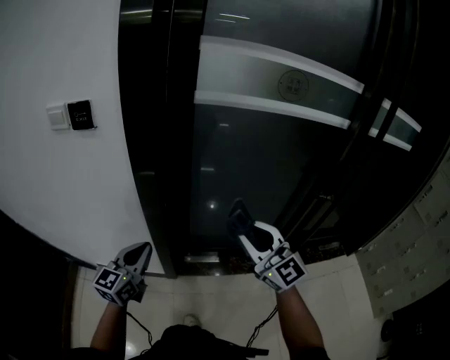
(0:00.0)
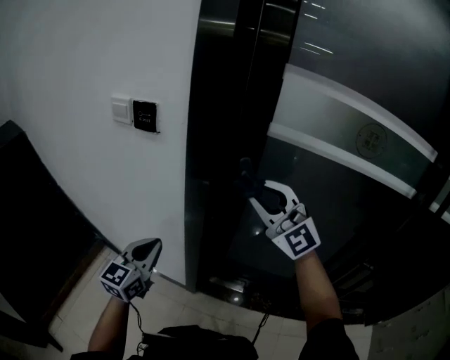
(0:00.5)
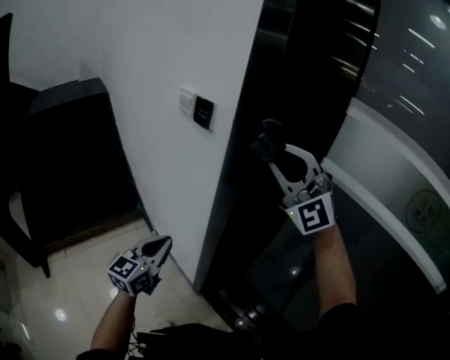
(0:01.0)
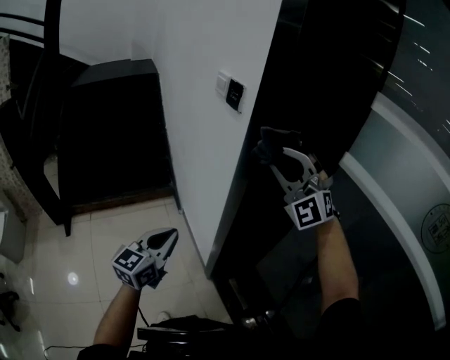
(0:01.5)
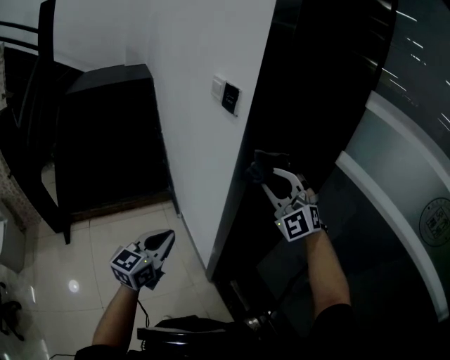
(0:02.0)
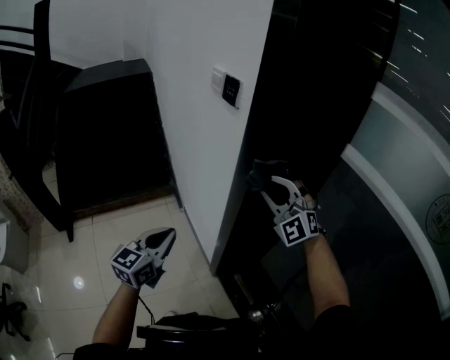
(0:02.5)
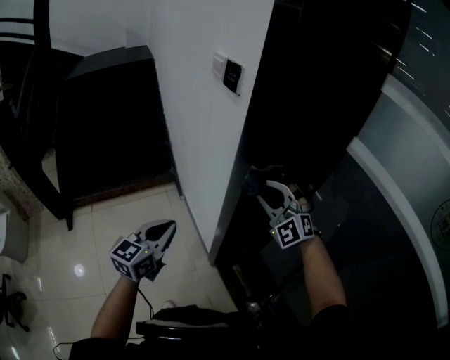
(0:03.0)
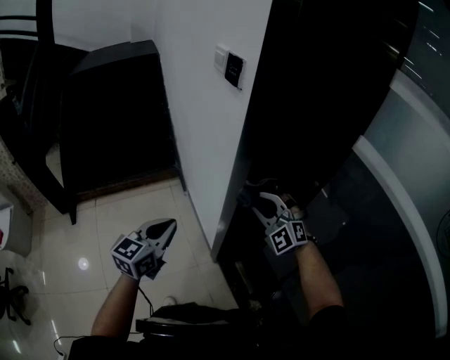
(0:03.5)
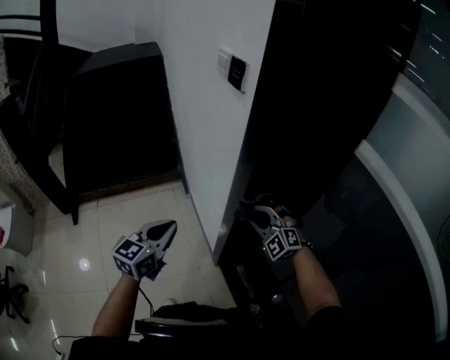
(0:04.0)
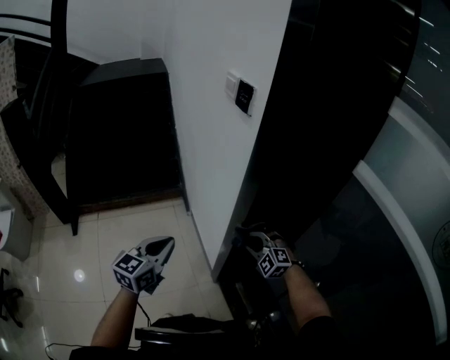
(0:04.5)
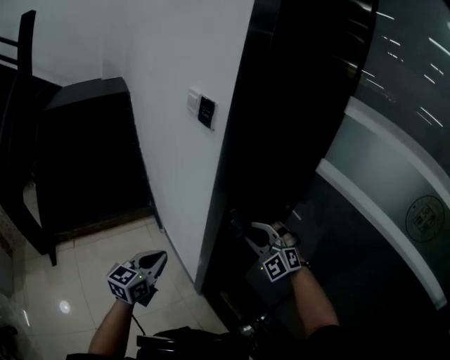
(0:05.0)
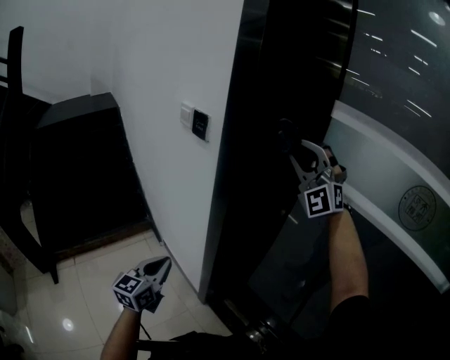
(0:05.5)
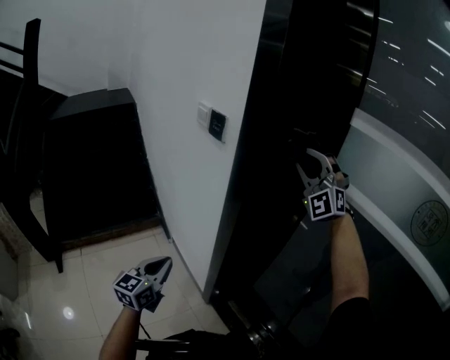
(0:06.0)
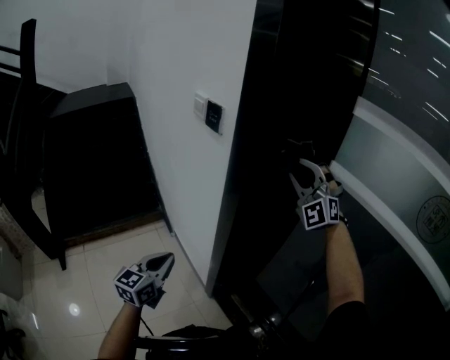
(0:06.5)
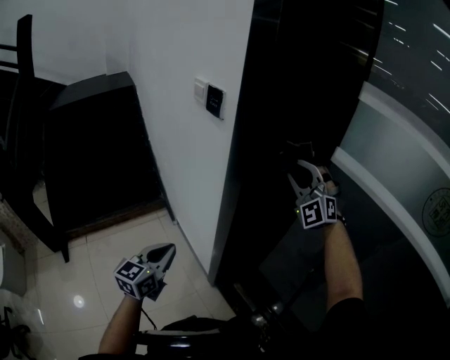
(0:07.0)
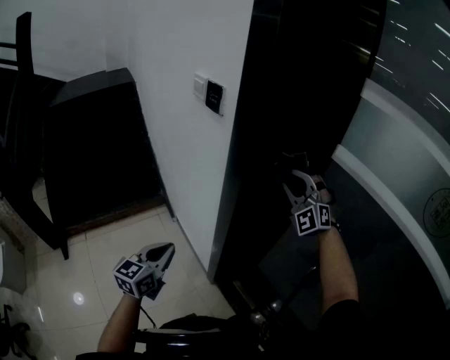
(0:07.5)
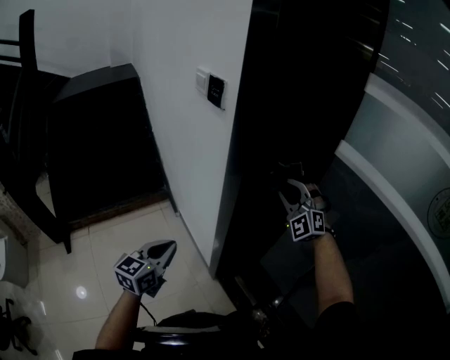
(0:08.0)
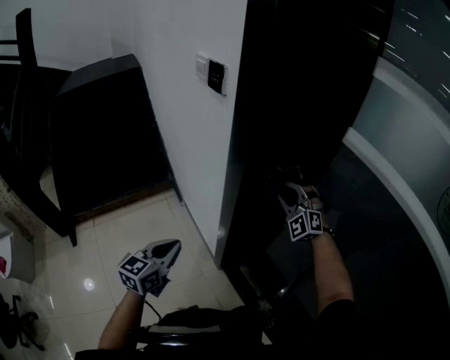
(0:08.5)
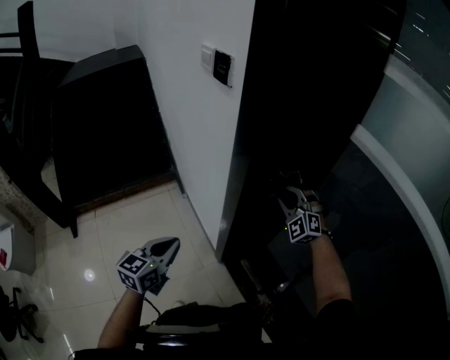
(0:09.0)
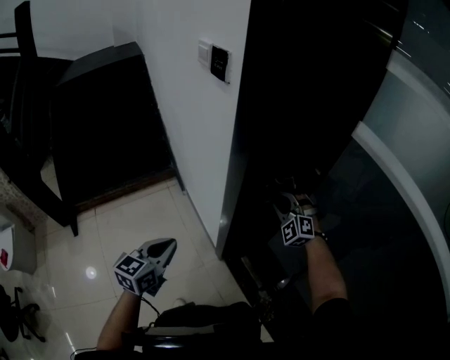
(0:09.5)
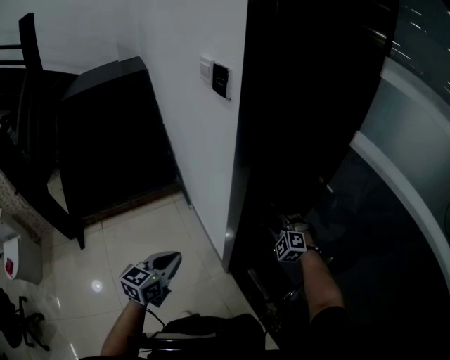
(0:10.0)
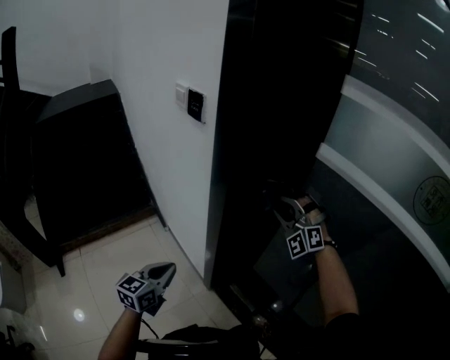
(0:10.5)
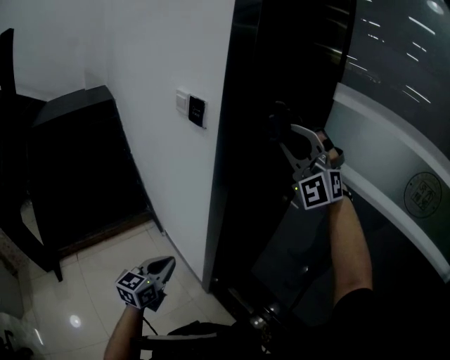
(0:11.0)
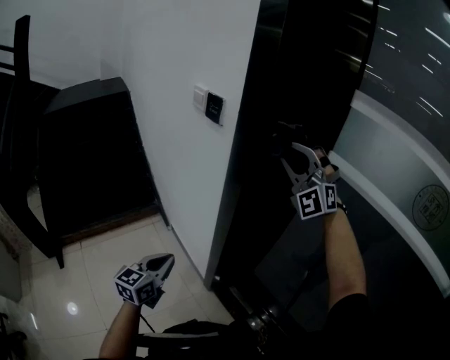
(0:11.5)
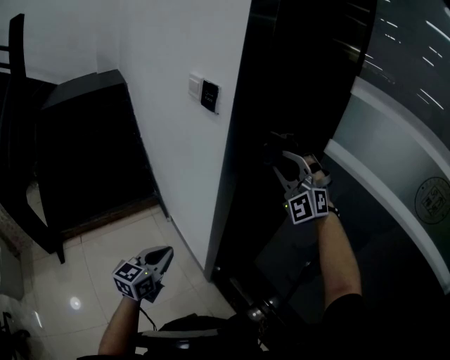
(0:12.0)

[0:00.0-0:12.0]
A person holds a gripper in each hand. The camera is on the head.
0:00.0 to 0:02.0: The right gripper reaches roughly 20 cm upward, then returns, and swivels about 70 degrees; the left gripper ends up some 5 cm from where it was, and changes its angle by some 60 degrees.
0:02.0 to 0:04.0: The right gripper heads downward, covering approximately 25 cm, and rotates approximately 30 degrees.
0:04.0 to 0:06.0: The right gripper shifts roughly 35 cm upward, and tilts its fingers approximately 30 degrees upward.
0:06.0 to 0:08.0: The right gripper heads downward, covering approximately 20 cm.
0:08.0 to 0:10.0: The right gripper moves downward, about 25 cm, and rotates about 30 degrees; the left gripper shifts by roughly 5 cm.
0:10.0 to 0:12.0: The right gripper moves upward, roughly 35 cm, and tips its fingers upward by about 40 degrees.

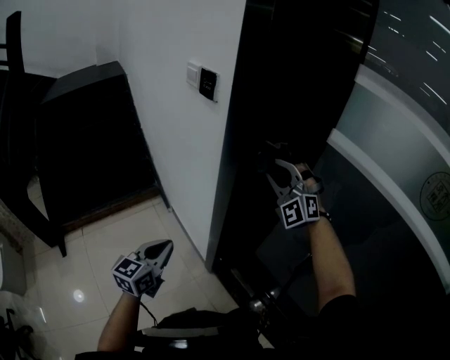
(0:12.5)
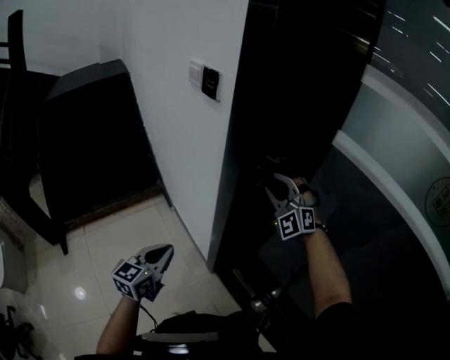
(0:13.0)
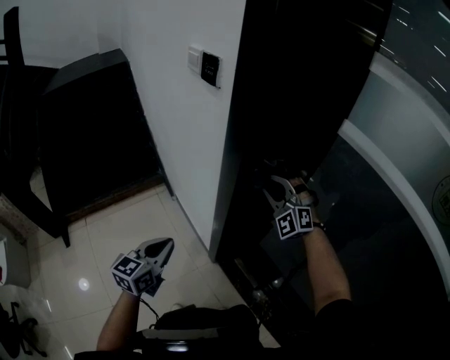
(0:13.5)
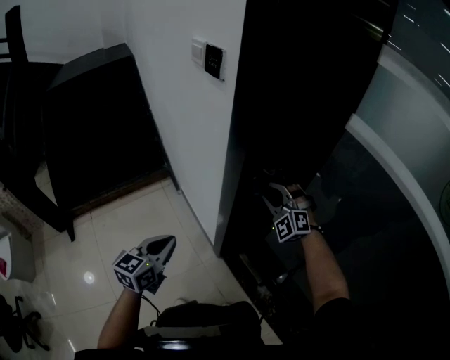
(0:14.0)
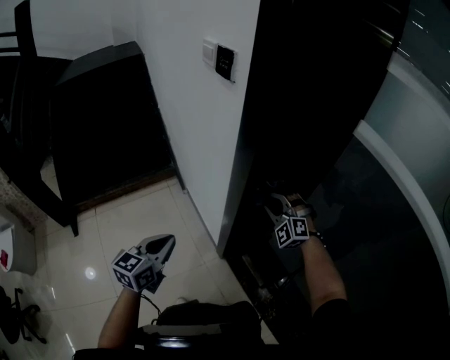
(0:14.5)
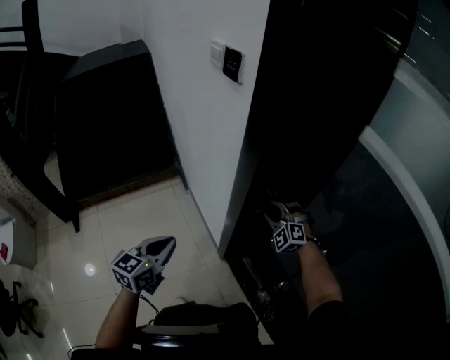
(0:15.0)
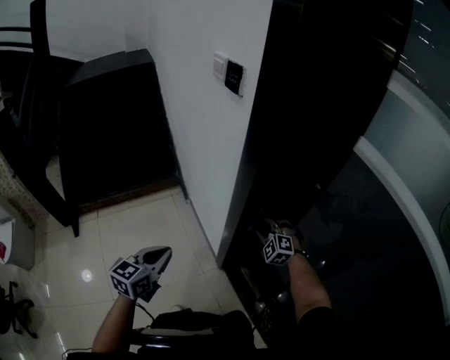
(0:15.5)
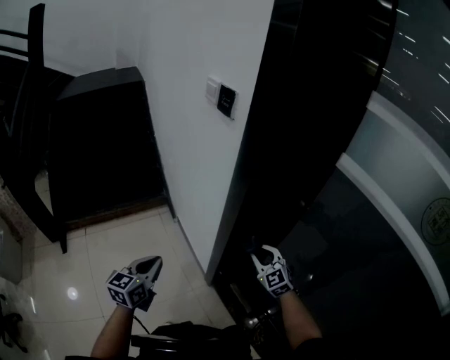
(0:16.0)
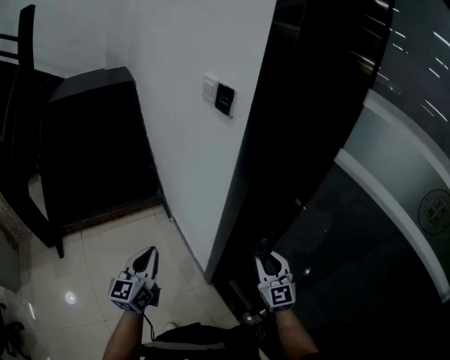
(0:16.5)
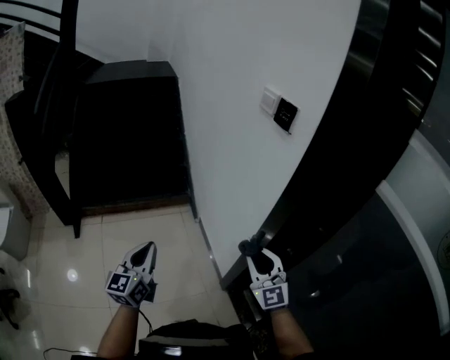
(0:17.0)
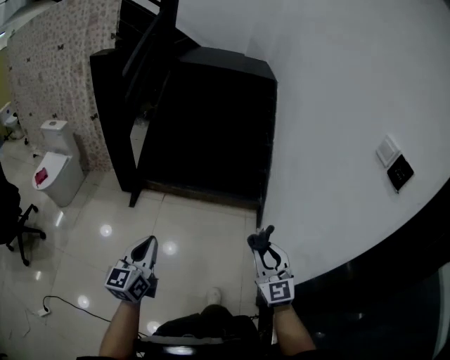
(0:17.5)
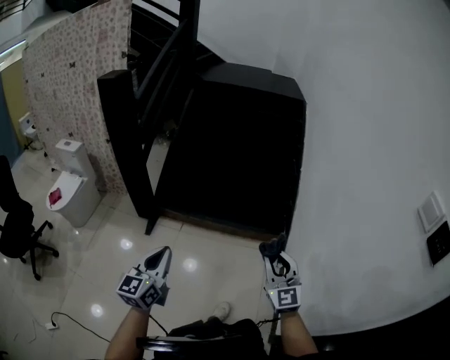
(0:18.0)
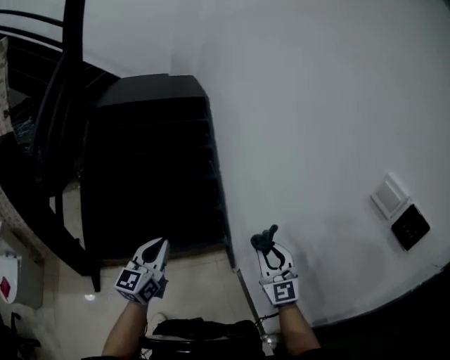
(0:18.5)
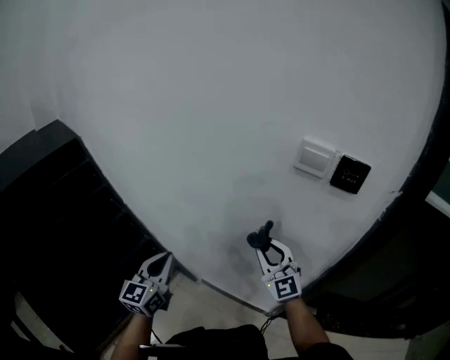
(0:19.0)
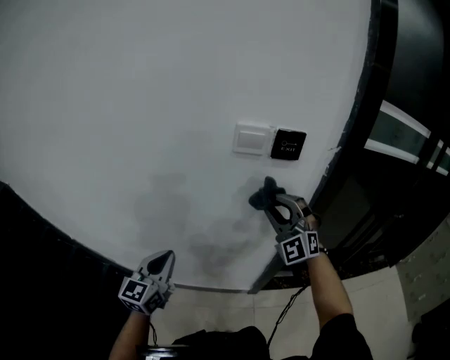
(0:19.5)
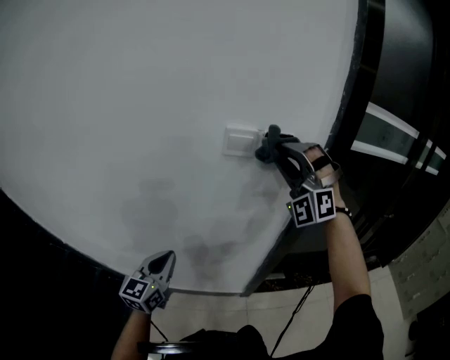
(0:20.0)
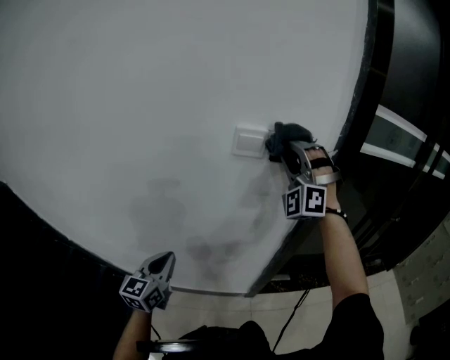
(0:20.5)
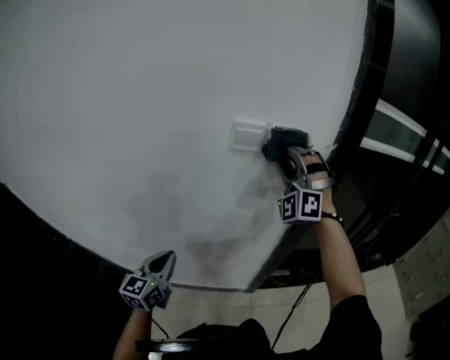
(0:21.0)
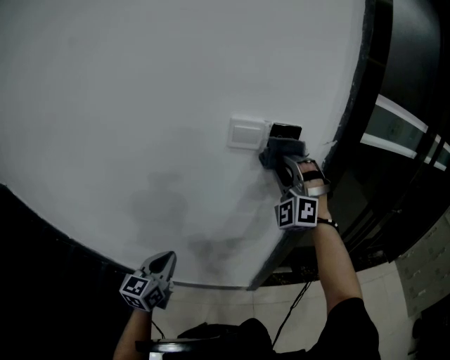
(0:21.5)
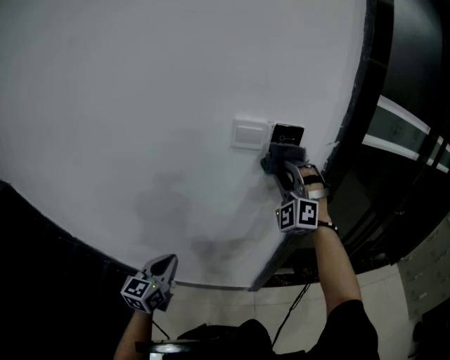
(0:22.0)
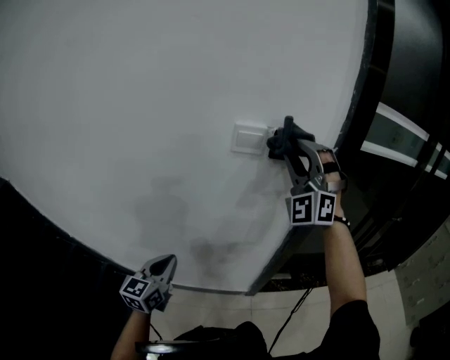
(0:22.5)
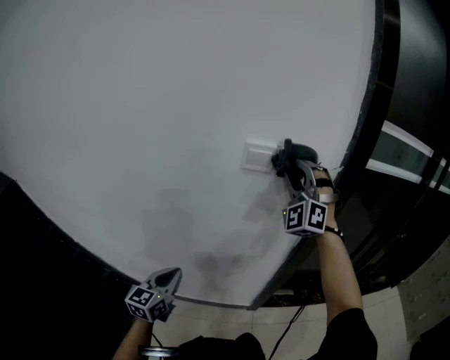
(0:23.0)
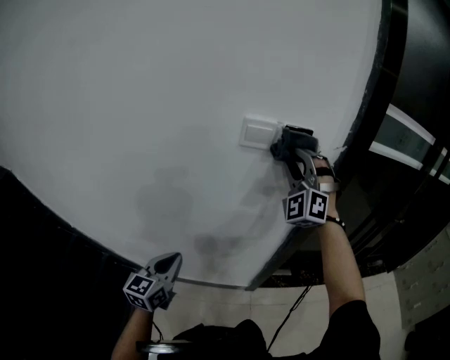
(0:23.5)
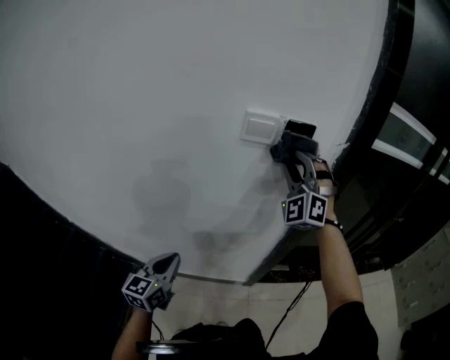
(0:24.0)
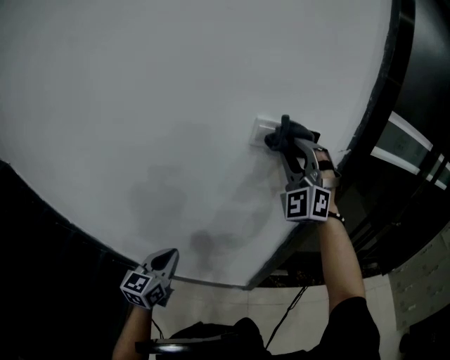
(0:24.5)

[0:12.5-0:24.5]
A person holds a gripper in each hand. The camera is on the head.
0:12.5 to 0:14.5: The right gripper travels downward by about 20 cm, and turns by roughly 20 degrees.
0:14.5 to 0:16.5: The right gripper travels backward by approximately 15 cm, and rotates around the line of its fingers by some 50 degrees, clockwise from behind. The left gripper goes about 5 cm to the left, and changes its angle by roughly 20 degrees.
0:16.5 to 0:18.5: The pair of grippers is taken about 60 cm.
0:18.5 to 0:20.5: The left gripper ends up about 30 cm from where it was, and turns by some 70 degrees. The right gripper moves upward, some 30 cm, and rotates some 110 degrees.
0:20.5 to 0:22.5: The right gripper goes downward and returns, roughly 10 cm each way.
0:22.5 to 0:24.5: The right gripper travels to the left by some 5 cm, and travels downward and back again, about 10 cm each way.

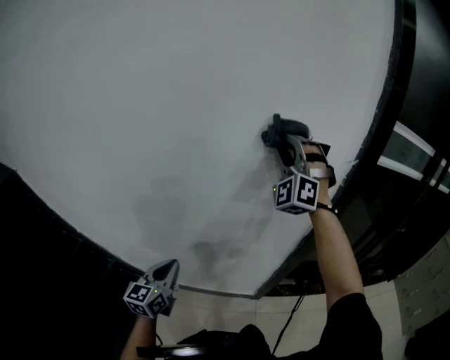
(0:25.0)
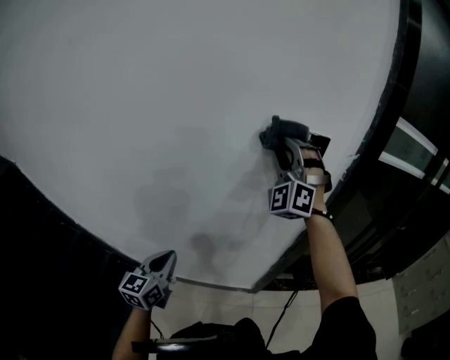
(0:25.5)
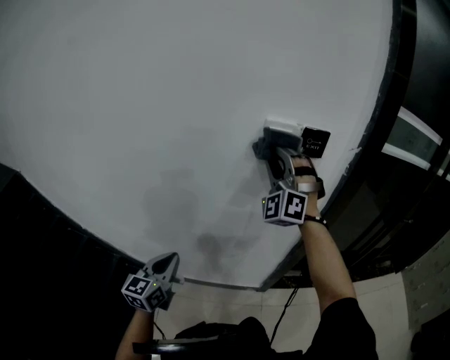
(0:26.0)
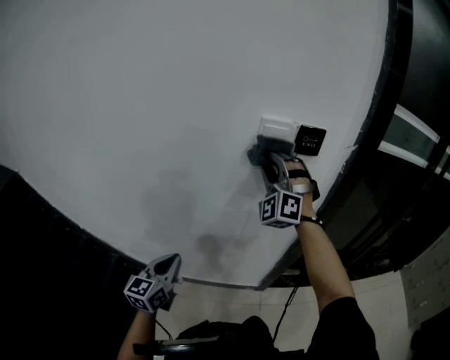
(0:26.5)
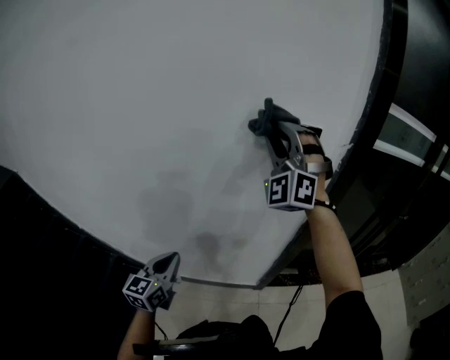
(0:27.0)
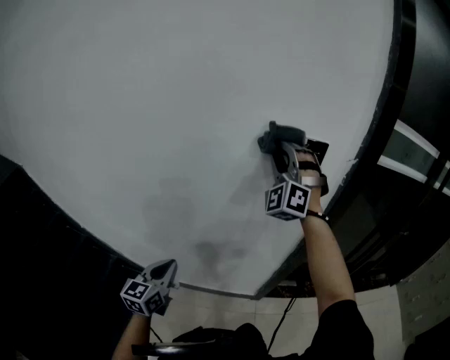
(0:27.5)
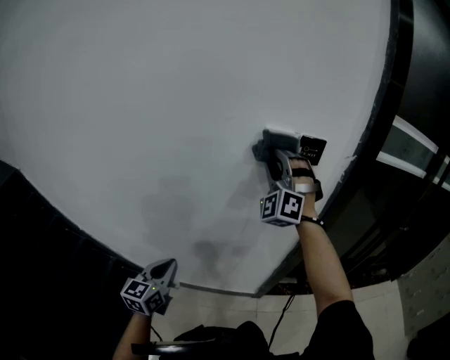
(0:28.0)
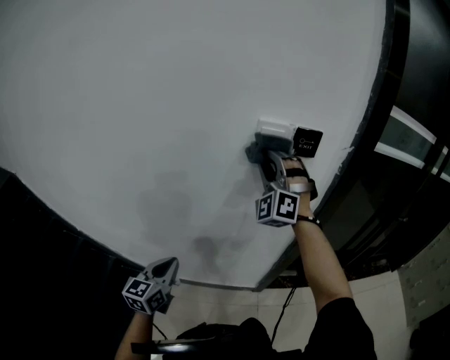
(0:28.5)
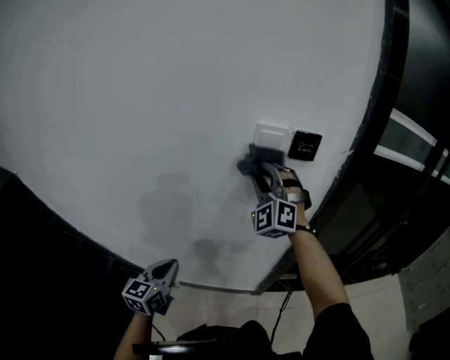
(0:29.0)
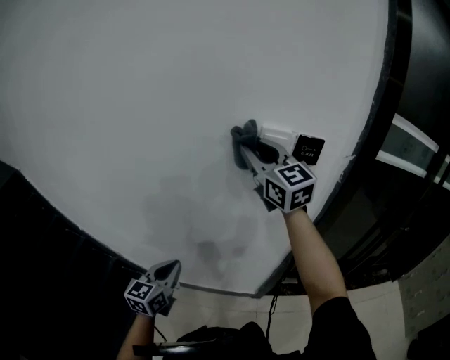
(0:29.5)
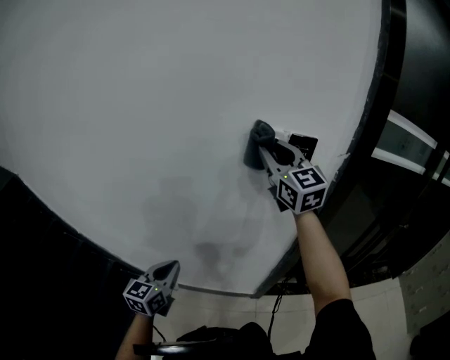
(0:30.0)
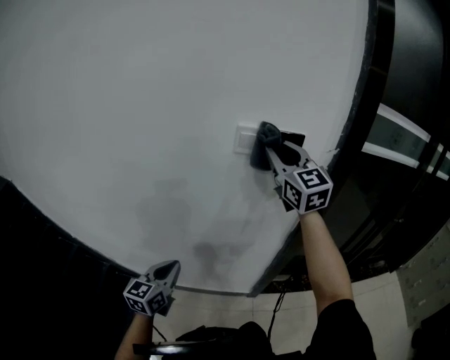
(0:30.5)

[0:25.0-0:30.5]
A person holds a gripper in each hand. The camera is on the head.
0:25.0 to 0:27.0: The right gripper reaches some 10 cm downward, then returns.
0:27.0 to 0:28.5: The right gripper heads downward, covering roughly 10 cm.
0:28.5 to 0:30.5: The right gripper goes approximately 10 cm upward and to the right, and rolls clockwise, seen from behind, by some 60 degrees. Meanwhile the left gripper goes roughly 5 cm to the right.
